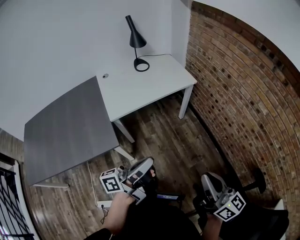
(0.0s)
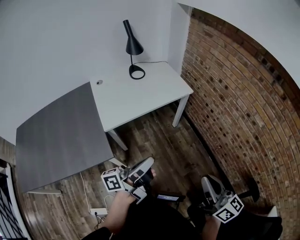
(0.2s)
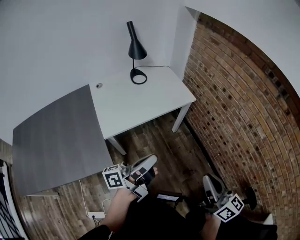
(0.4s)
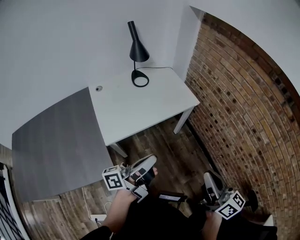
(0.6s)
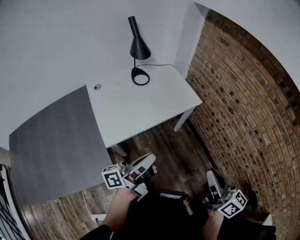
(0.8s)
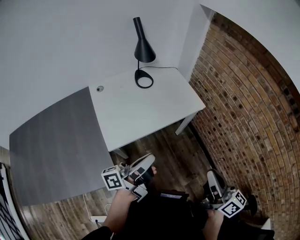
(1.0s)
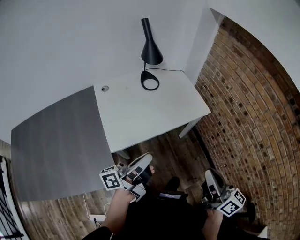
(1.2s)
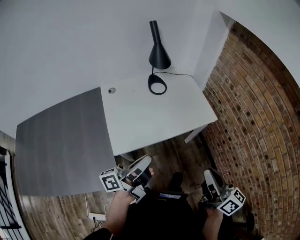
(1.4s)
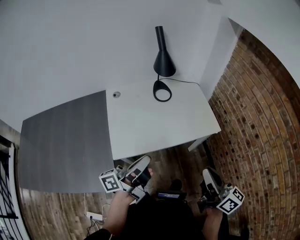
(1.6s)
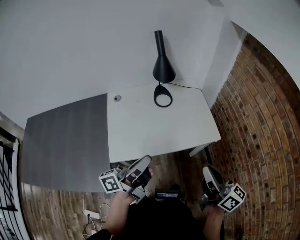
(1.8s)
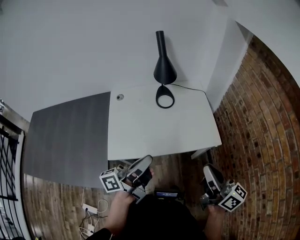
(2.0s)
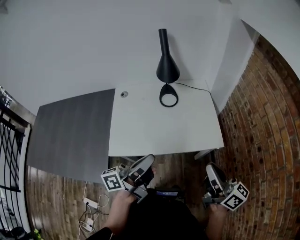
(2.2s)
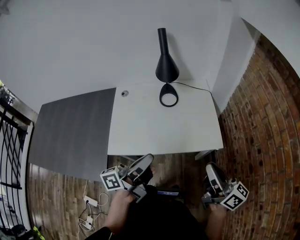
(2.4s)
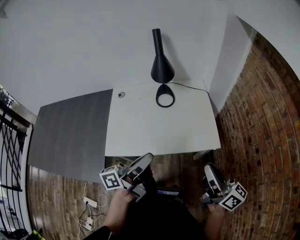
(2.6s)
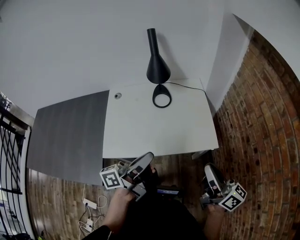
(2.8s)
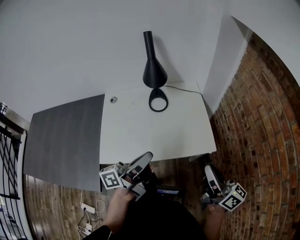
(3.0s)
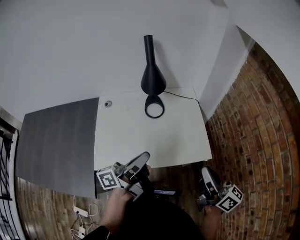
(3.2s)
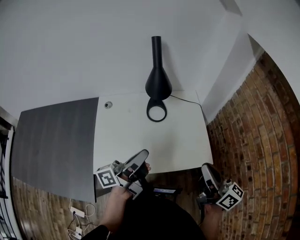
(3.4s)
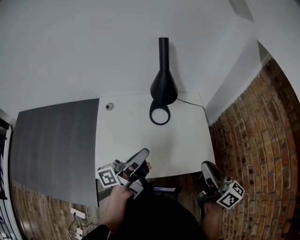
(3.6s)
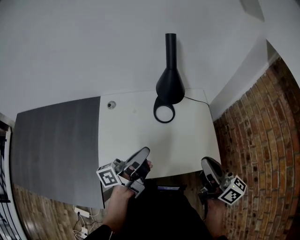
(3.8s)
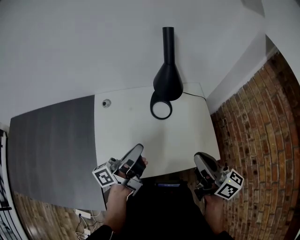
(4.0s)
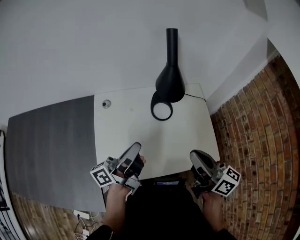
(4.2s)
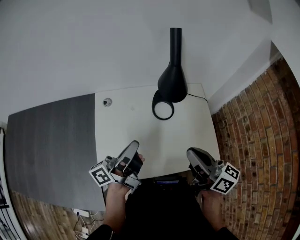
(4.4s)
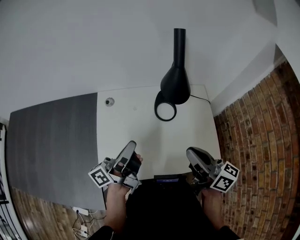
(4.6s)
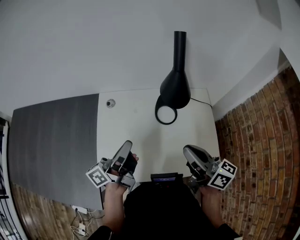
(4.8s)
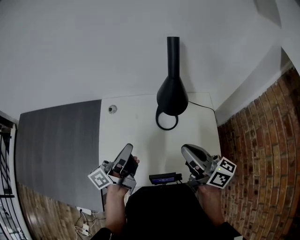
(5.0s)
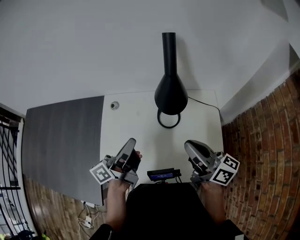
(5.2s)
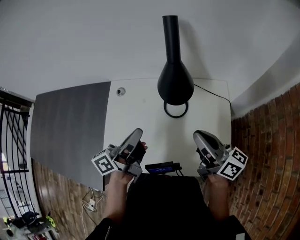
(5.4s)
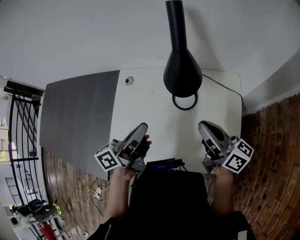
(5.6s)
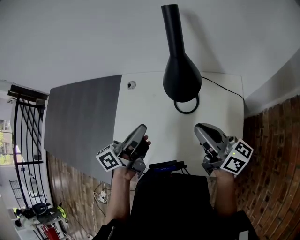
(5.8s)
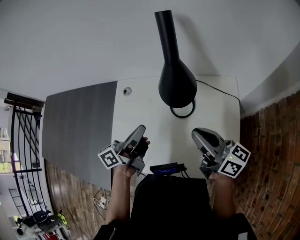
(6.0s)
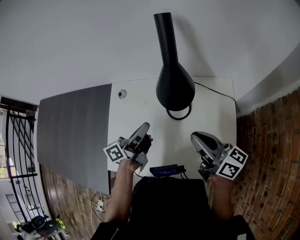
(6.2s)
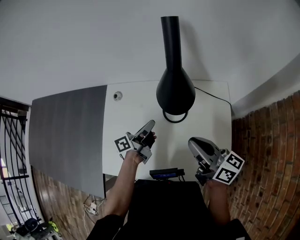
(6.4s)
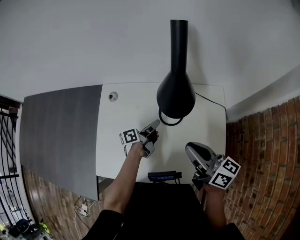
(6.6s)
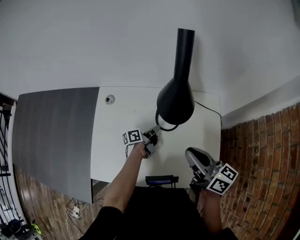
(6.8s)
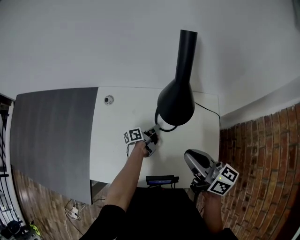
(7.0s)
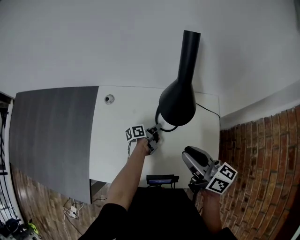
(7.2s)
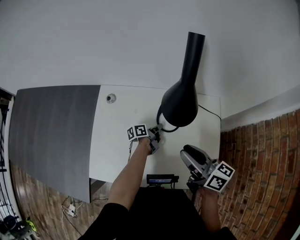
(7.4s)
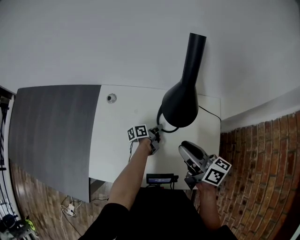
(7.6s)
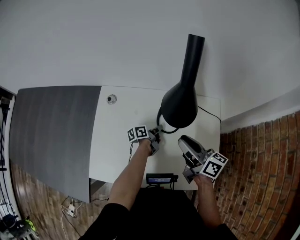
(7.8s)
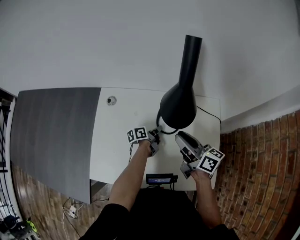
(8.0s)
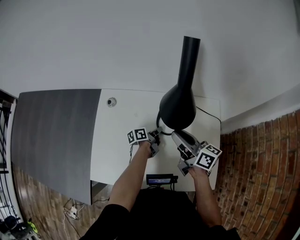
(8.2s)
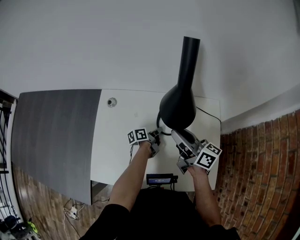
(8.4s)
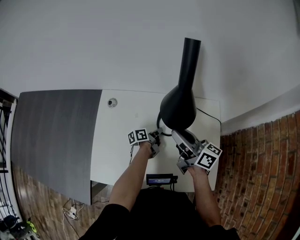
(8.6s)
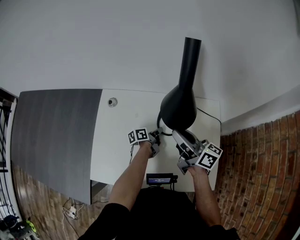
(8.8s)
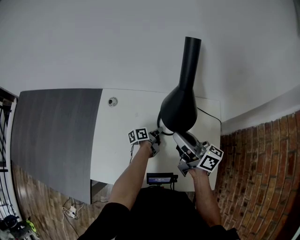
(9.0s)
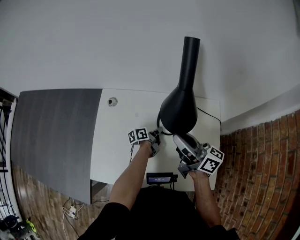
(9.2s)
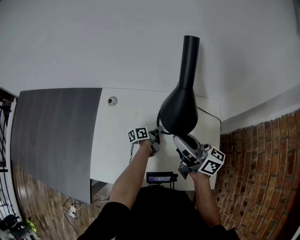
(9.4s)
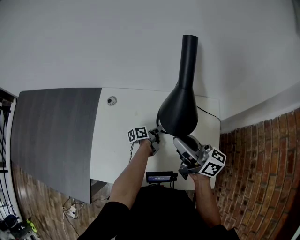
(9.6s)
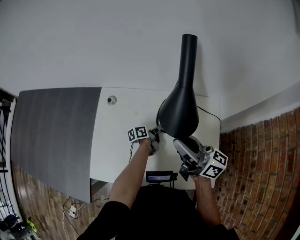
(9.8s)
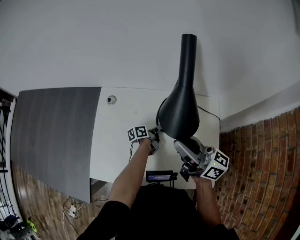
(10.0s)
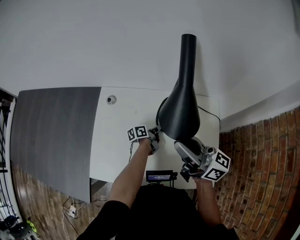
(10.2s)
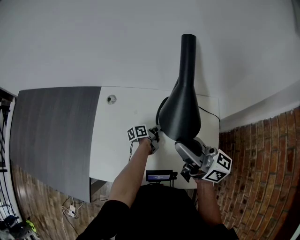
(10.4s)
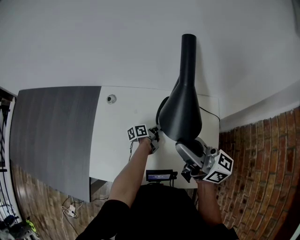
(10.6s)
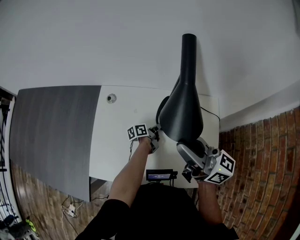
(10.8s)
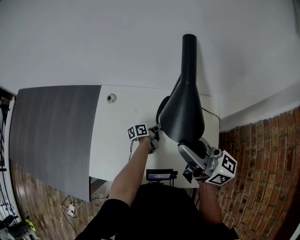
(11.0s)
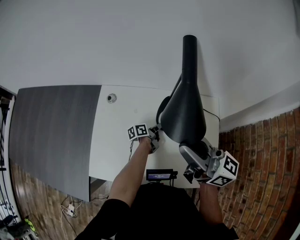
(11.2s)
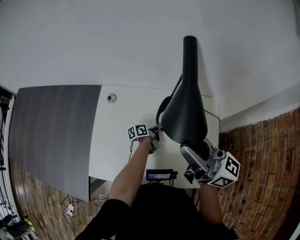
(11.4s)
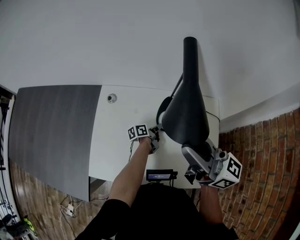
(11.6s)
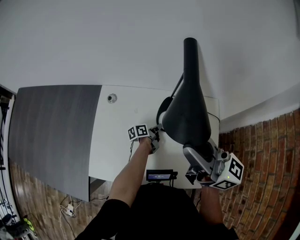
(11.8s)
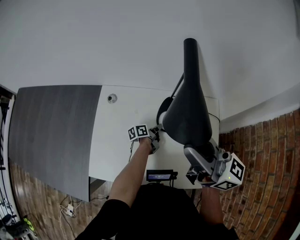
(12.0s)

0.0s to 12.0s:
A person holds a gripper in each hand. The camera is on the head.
0.0s to 1.6s: The right gripper changes place by roughly 40 cm.
1.6s to 3.0s: The right gripper moves approximately 20 cm.
3.0s to 4.4s: The right gripper moves some 25 cm.
4.4s to 6.0s: The right gripper changes place by roughly 15 cm.
6.0s to 7.6s: The right gripper moves about 5 cm, and opens up.
7.6s to 9.0s: The right gripper moves approximately 5 cm.
9.0s to 10.4s: The right gripper goes approximately 10 cm upward.
10.4s to 12.0s: The right gripper travels upward by some 10 cm.

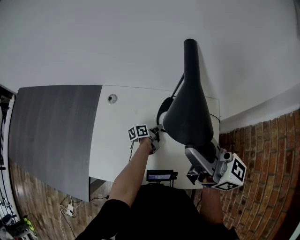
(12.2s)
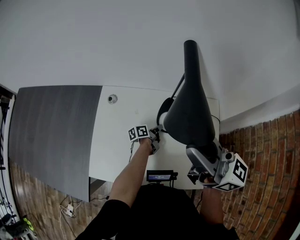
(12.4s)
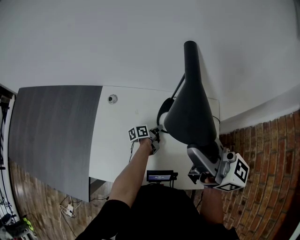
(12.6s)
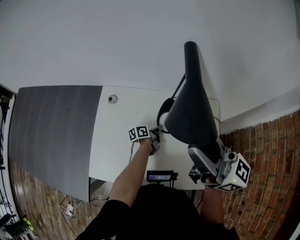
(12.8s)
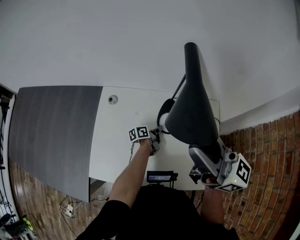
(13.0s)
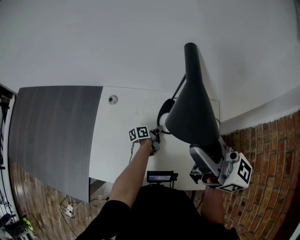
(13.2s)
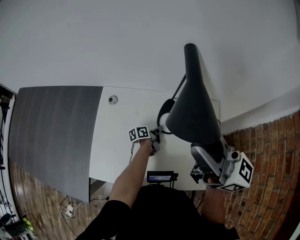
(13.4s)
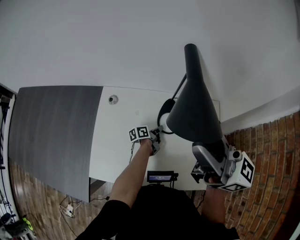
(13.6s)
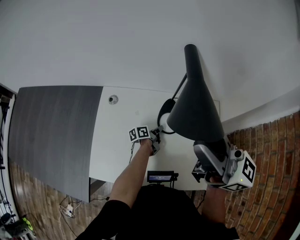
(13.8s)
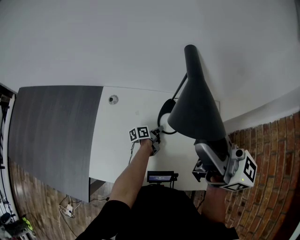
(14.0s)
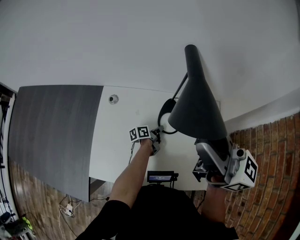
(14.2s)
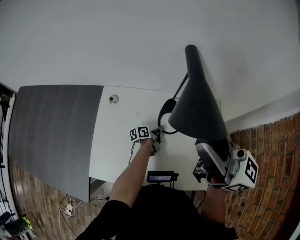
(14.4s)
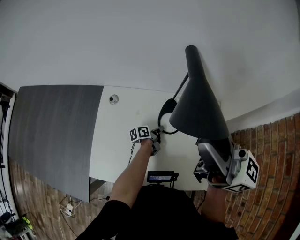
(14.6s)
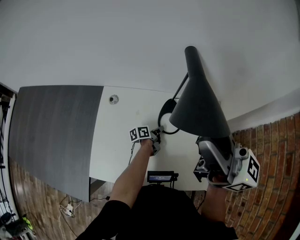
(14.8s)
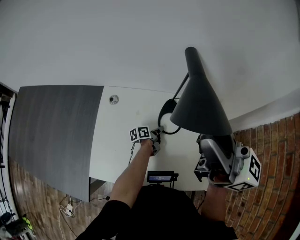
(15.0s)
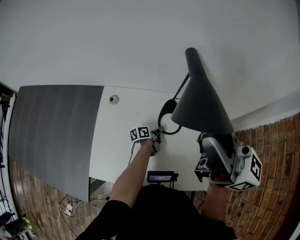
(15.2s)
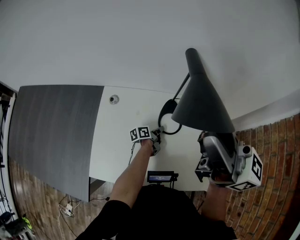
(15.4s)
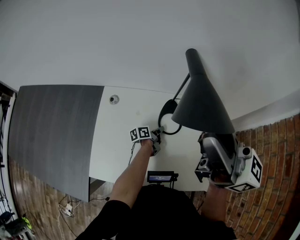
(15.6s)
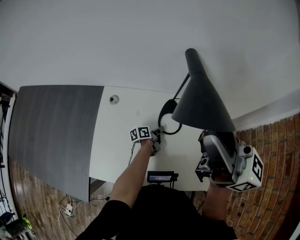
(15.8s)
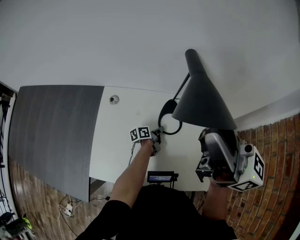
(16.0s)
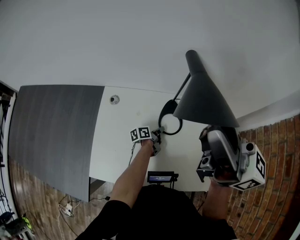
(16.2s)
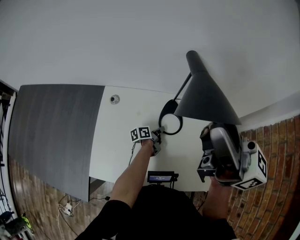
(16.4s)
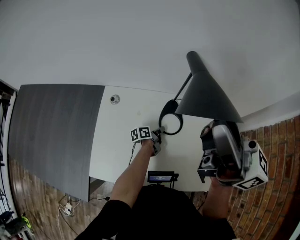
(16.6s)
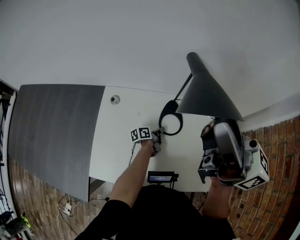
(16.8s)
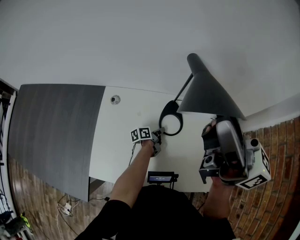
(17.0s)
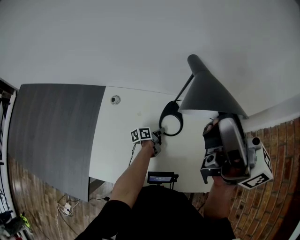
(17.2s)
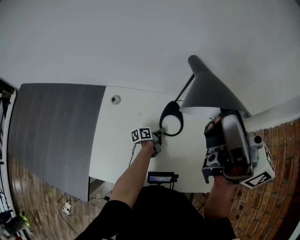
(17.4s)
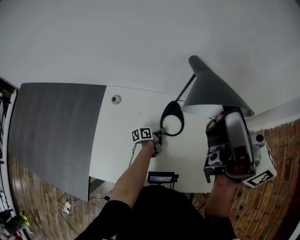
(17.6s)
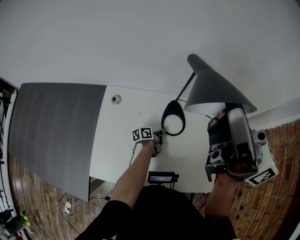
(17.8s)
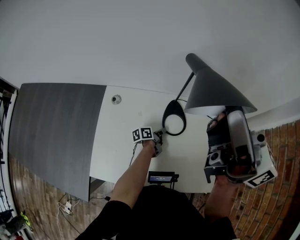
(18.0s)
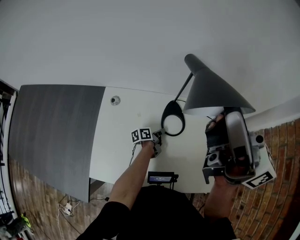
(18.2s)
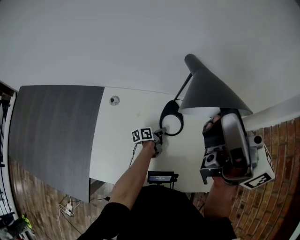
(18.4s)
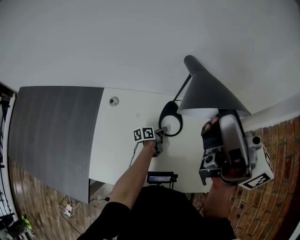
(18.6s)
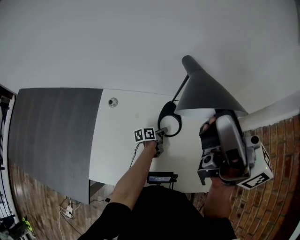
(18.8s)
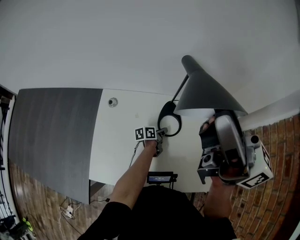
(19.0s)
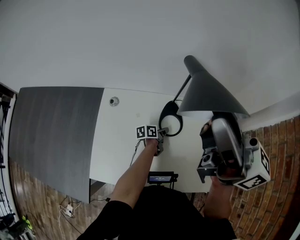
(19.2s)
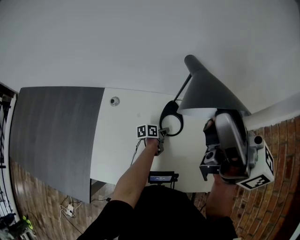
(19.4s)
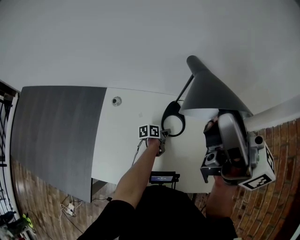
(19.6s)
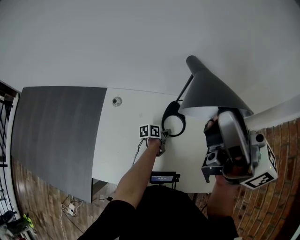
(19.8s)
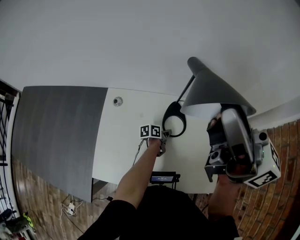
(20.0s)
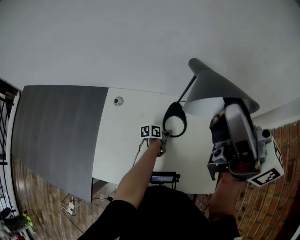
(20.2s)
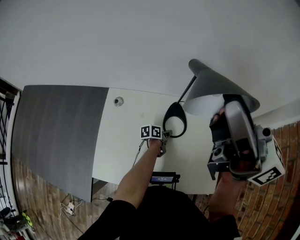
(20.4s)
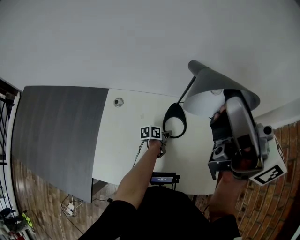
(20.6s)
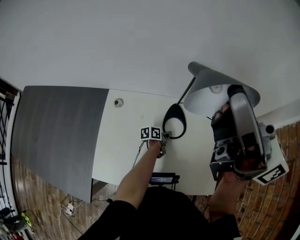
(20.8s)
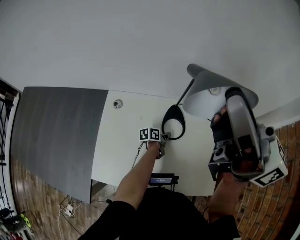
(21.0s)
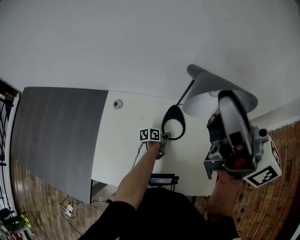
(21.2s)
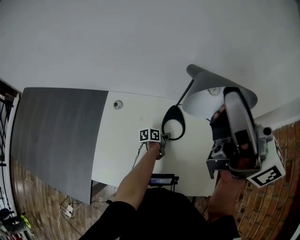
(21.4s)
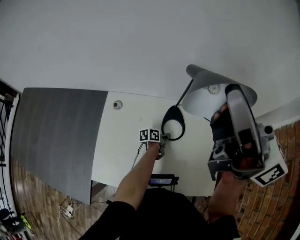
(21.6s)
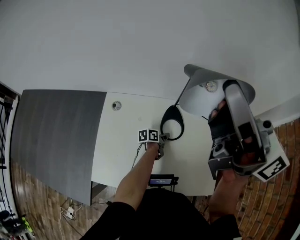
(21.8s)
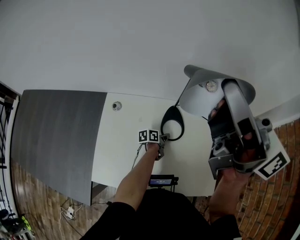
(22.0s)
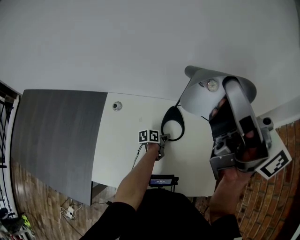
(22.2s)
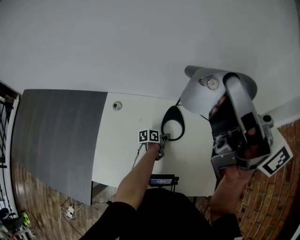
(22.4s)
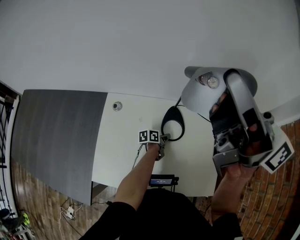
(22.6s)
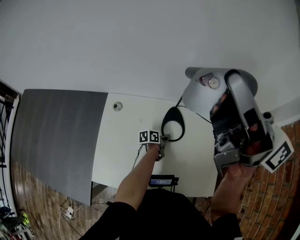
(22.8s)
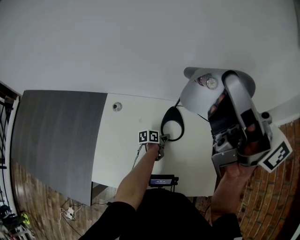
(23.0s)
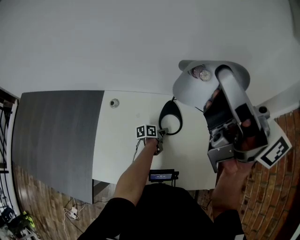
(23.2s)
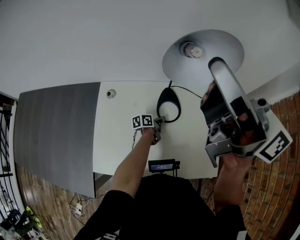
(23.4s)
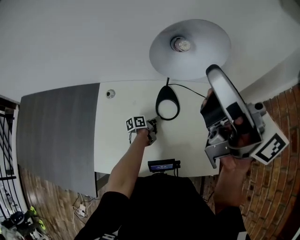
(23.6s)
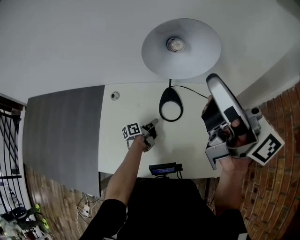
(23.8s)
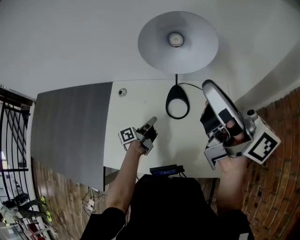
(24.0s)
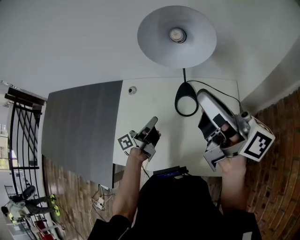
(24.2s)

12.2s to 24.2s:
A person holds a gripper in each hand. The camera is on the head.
12.2s to 13.8s: The right gripper shifts roughly 5 cm upward.
22.6s to 24.2s: The right gripper goes some 15 cm downward.

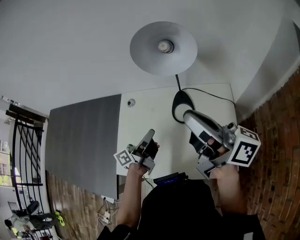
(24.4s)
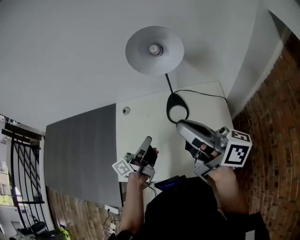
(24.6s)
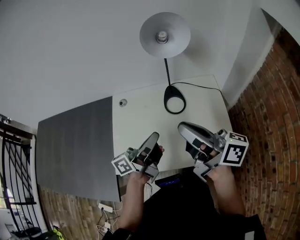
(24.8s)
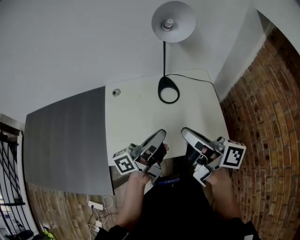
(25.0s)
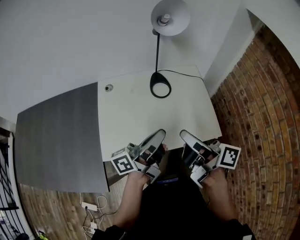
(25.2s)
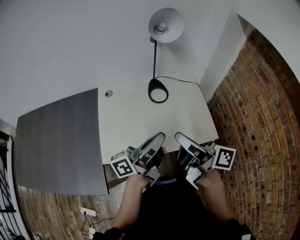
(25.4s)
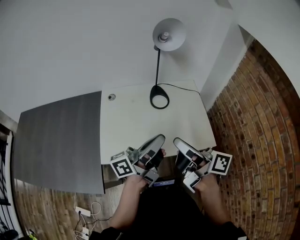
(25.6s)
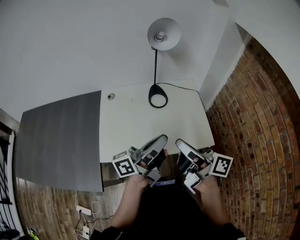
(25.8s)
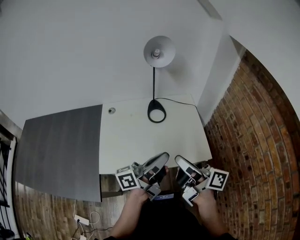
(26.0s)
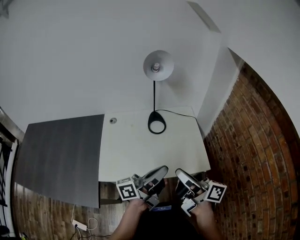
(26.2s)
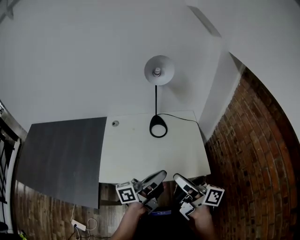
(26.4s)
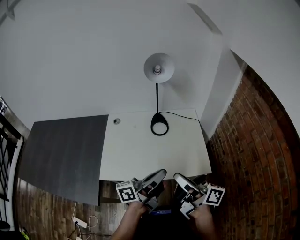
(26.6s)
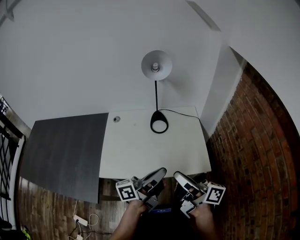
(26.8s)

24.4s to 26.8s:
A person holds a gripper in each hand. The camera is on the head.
24.4s to 25.6s: The right gripper changes place by approximately 25 cm.
25.6s to 26.8s: The right gripper moves some 10 cm.
